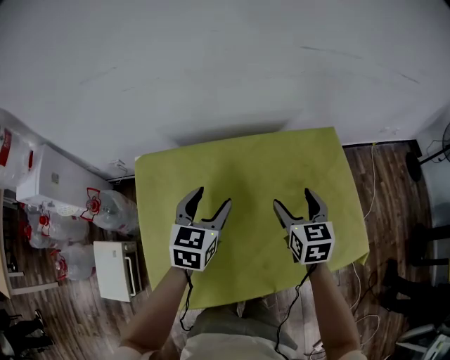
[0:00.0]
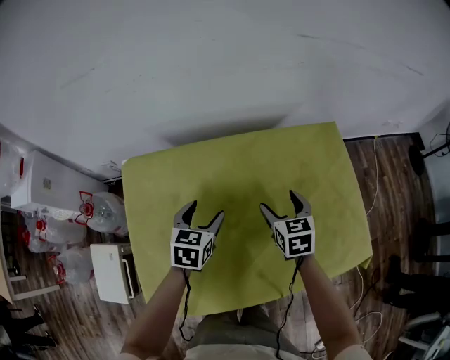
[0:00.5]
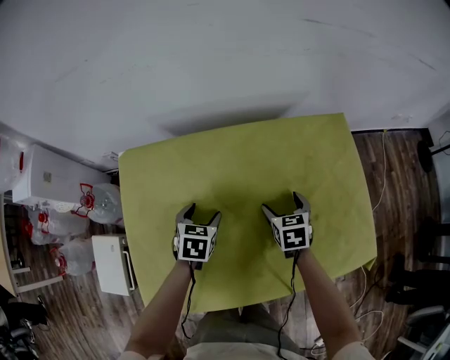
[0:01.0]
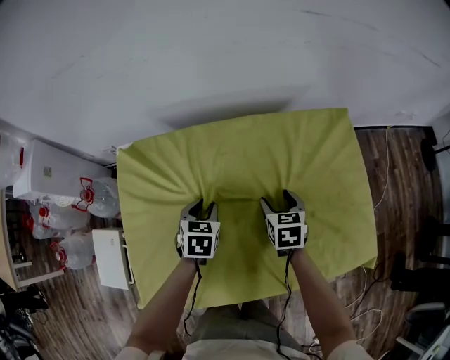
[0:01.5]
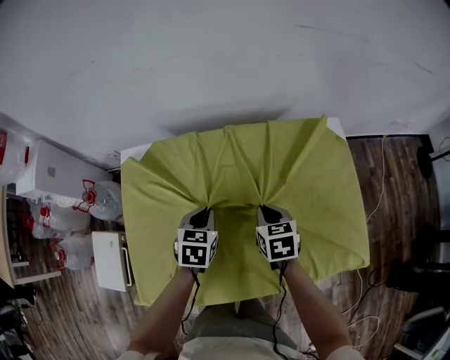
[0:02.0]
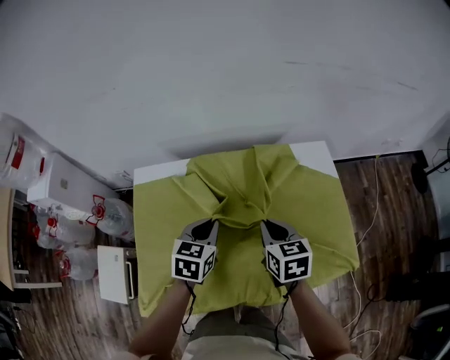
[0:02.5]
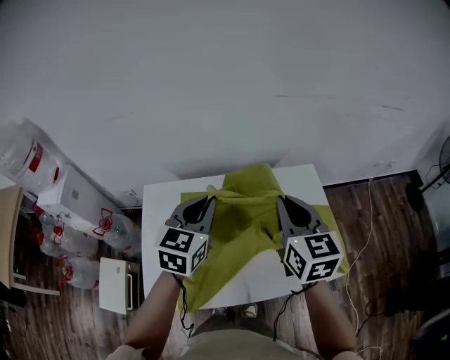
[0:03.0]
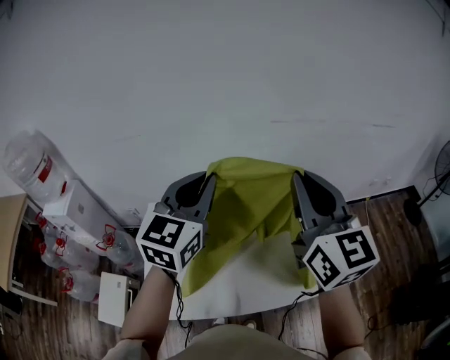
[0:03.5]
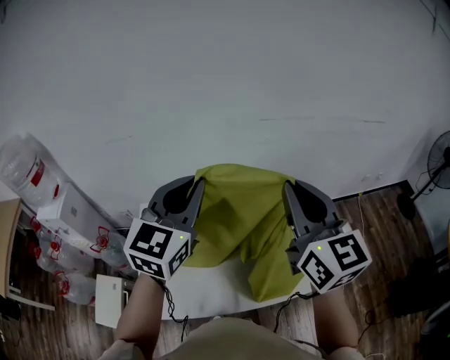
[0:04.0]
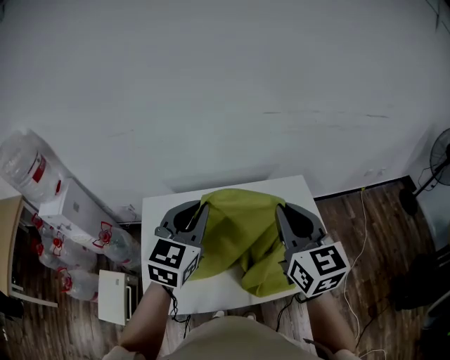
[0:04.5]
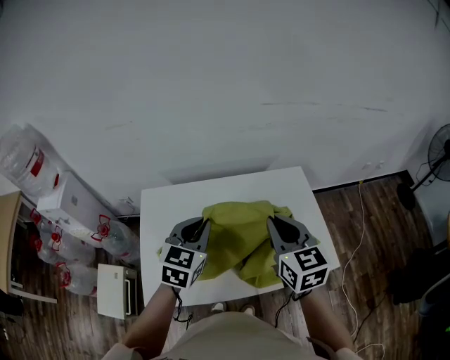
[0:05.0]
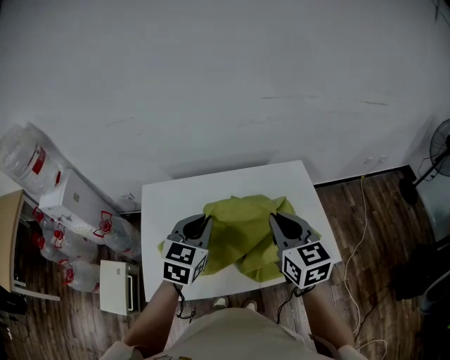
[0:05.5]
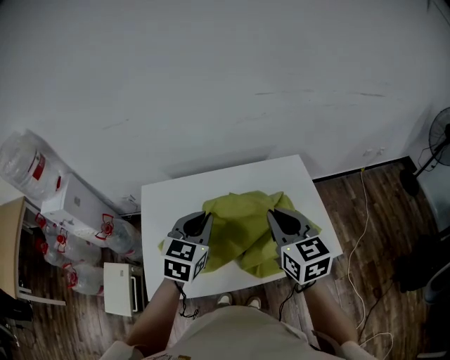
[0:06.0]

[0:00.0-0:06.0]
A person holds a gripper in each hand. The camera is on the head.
0:00.0 to 0:02.0: Both grippers travel together downward, approximately 15 cm. The right gripper closes its fingers. Meanwhile the left gripper changes its angle by approximately 20 degrees, and closes its fingers.
0:02.0 to 0:04.0: Both grippers move upward, approximately 50 cm. The left gripper points its fingers roughly 50 degrees further upward. Meanwhile the right gripper tilts its fingers about 50 degrees upward.
0:04.0 to 0:06.0: Both grippers travel together downward, roughly 20 cm. The right gripper changes its angle by approximately 20 degrees, while the left gripper turns by roughly 20 degrees.

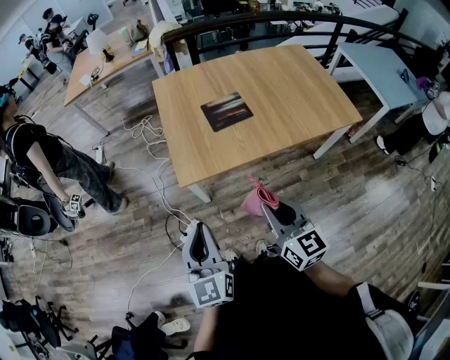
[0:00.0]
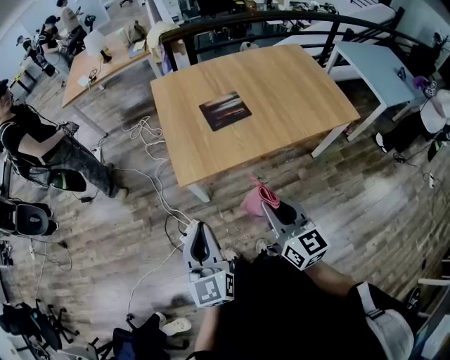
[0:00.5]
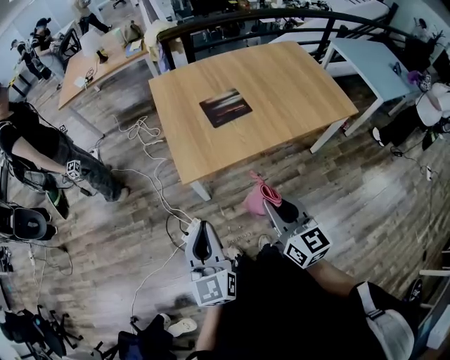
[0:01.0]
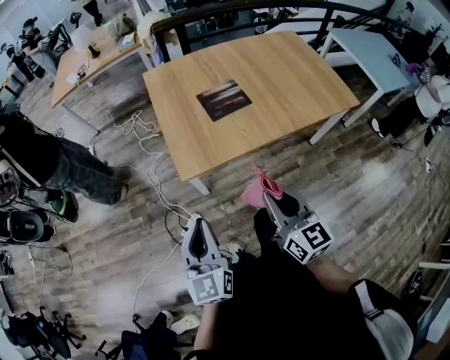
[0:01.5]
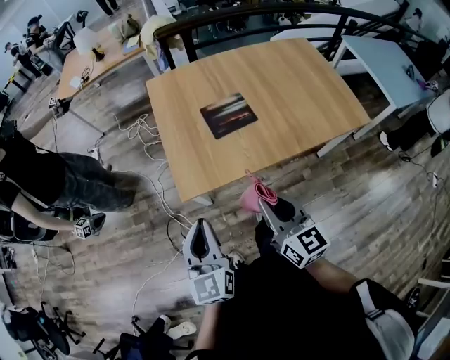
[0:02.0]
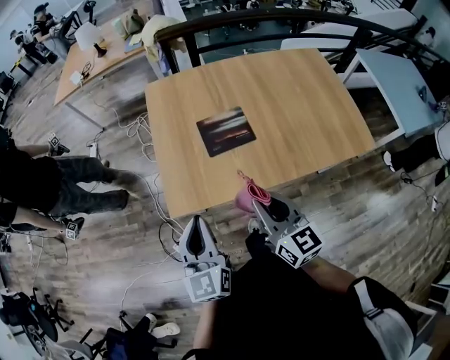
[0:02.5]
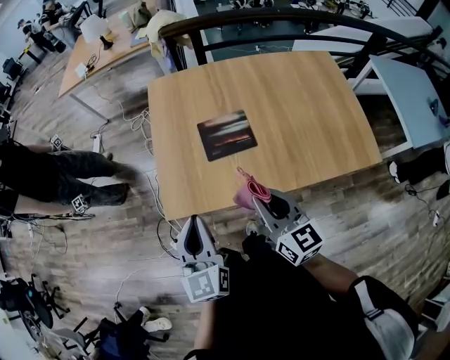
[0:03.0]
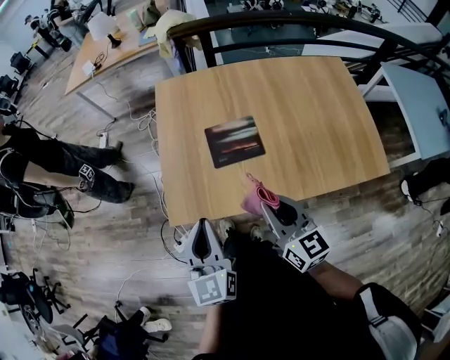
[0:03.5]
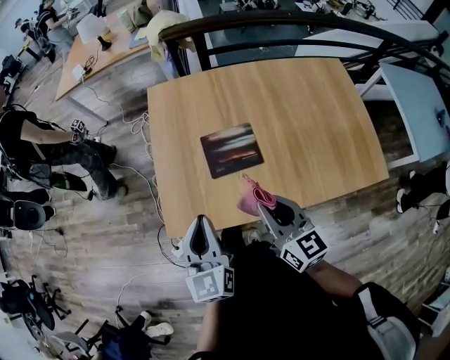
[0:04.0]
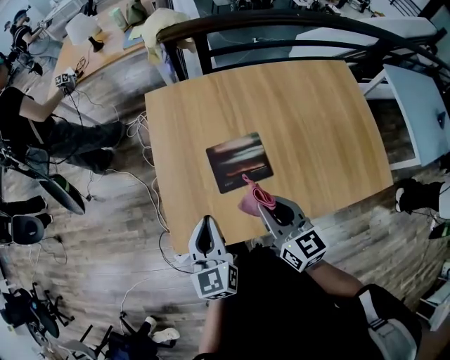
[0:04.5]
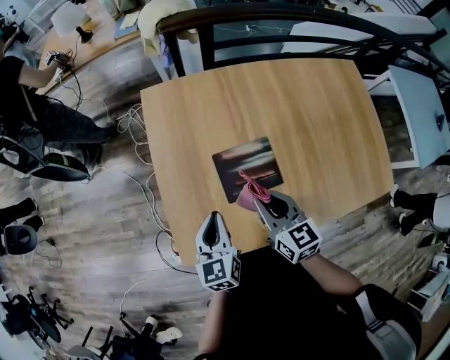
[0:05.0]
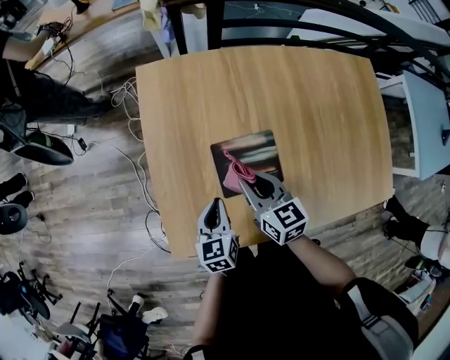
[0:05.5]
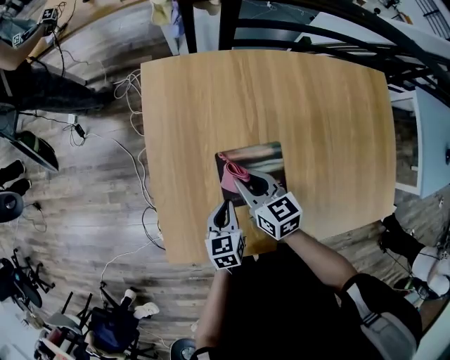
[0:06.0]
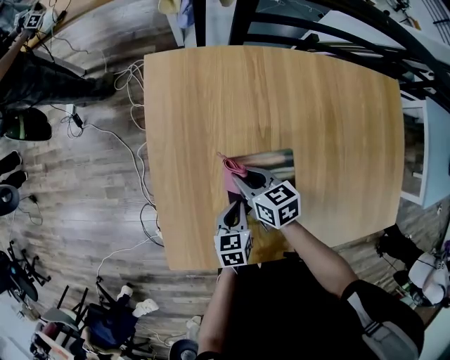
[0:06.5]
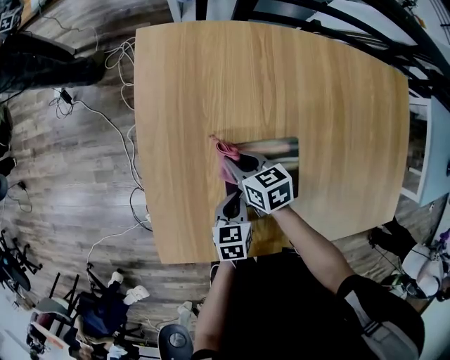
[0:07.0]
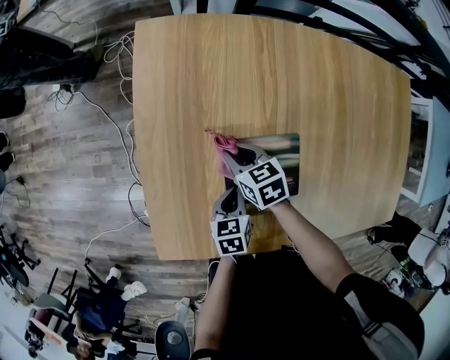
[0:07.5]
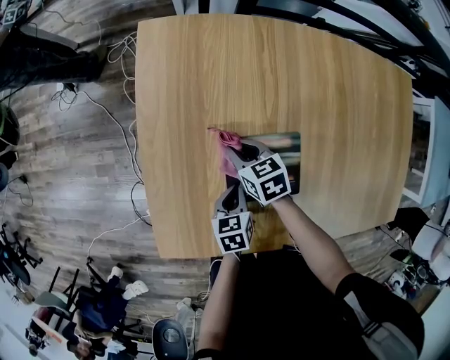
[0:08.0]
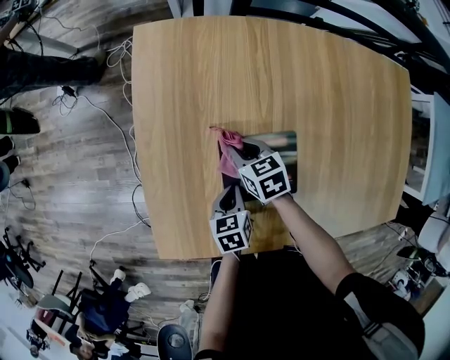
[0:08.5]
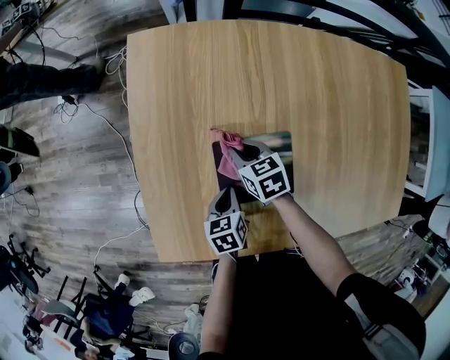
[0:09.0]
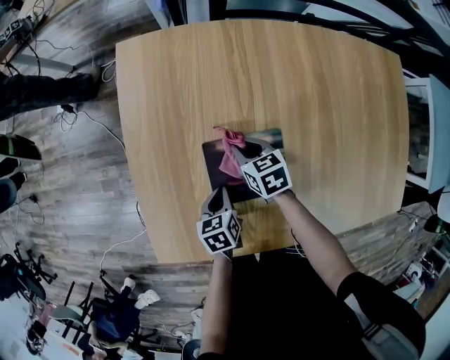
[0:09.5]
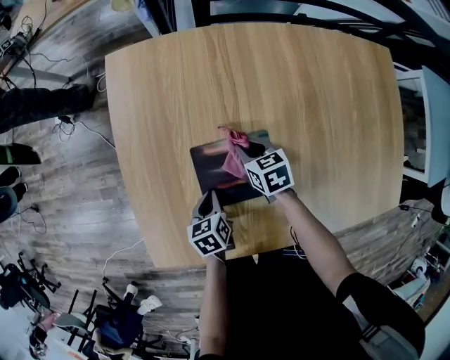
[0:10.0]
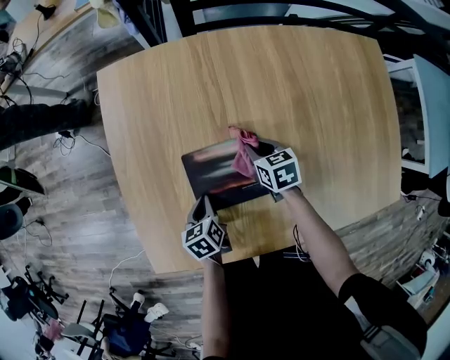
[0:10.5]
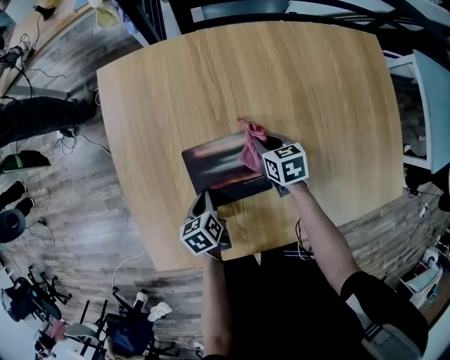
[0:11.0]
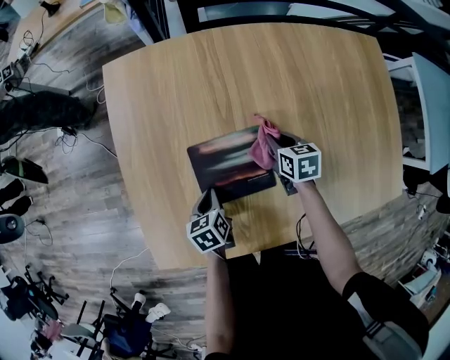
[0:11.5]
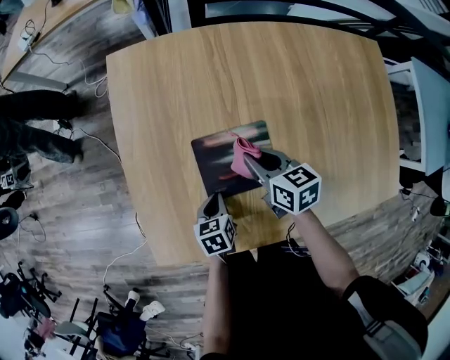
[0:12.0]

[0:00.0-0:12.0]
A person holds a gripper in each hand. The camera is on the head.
0:00.0 to 0:02.0: The grippers both shift forward by some 10 cm.
0:02.0 to 0:04.0: Both grippers travel together forward and to the right, some 25 cm.
0:04.0 to 0:06.0: The left gripper heads downward and forward, covering some 35 cm, and changes its angle by about 30 degrees; the right gripper goes approximately 35 cm forward and downward, and rotates approximately 20 degrees.
0:06.0 to 0:08.0: The right gripper goes roughly 15 cm downward, and rotates about 20 degrees, while the left gripper shifts approximately 10 cm downward.
0:08.0 to 0:10.0: The right gripper is displaced to the right by roughly 10 cm.
0:10.0 to 0:12.0: The right gripper goes some 10 cm upward, and reaches roughly 10 cm to the right, then returns.

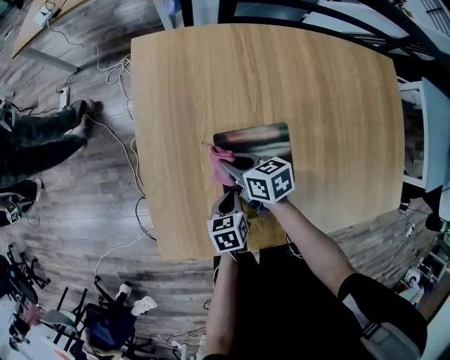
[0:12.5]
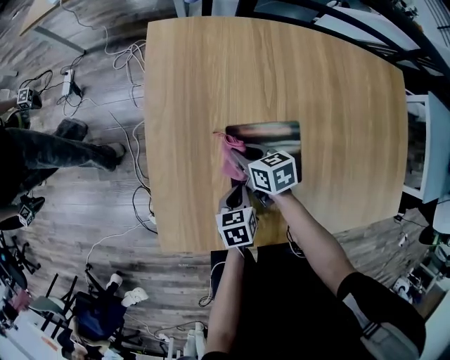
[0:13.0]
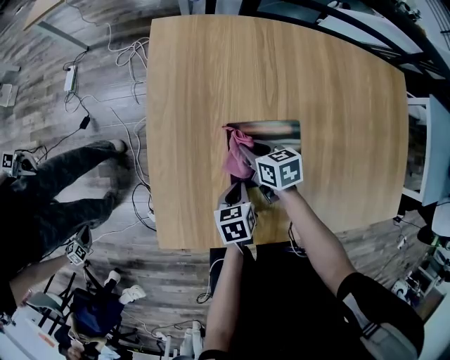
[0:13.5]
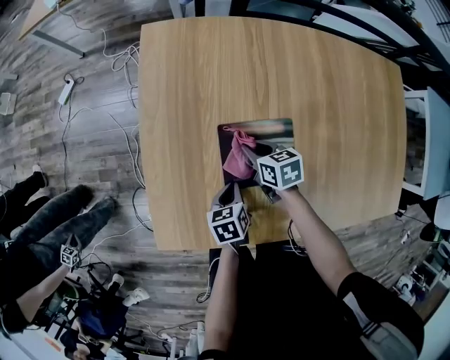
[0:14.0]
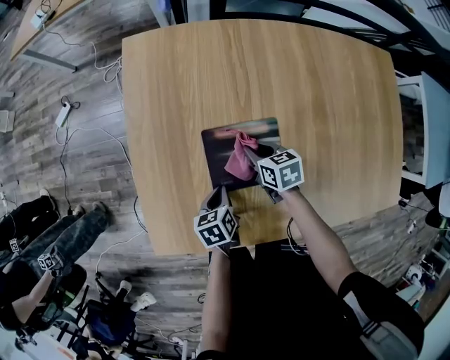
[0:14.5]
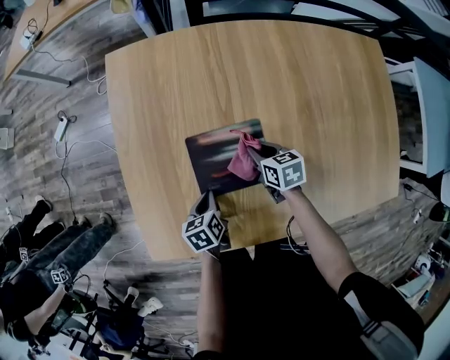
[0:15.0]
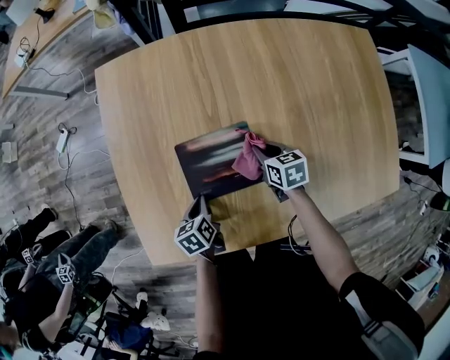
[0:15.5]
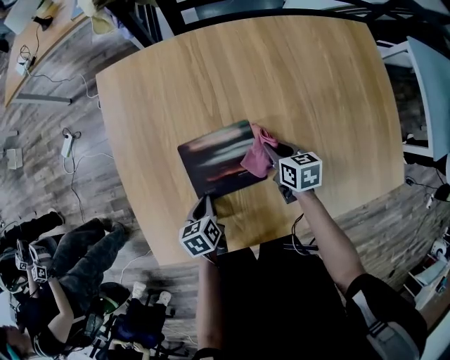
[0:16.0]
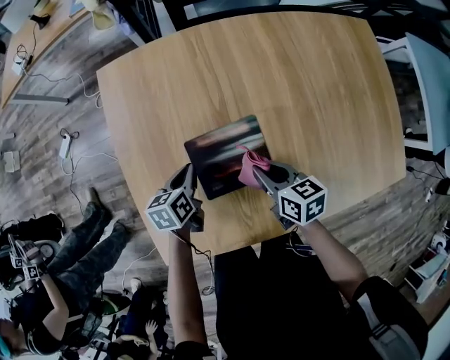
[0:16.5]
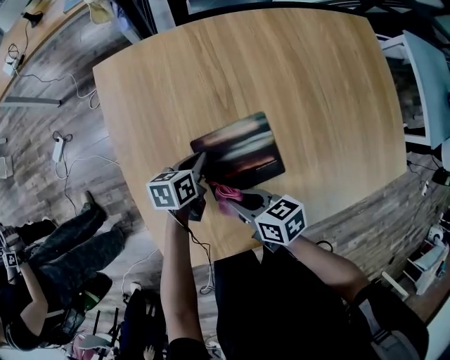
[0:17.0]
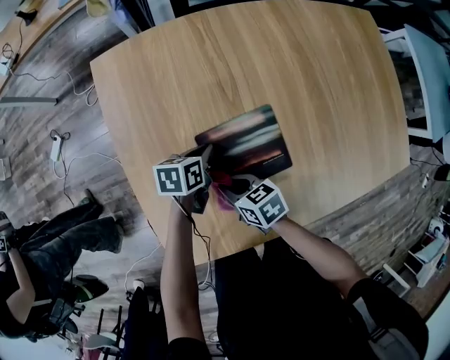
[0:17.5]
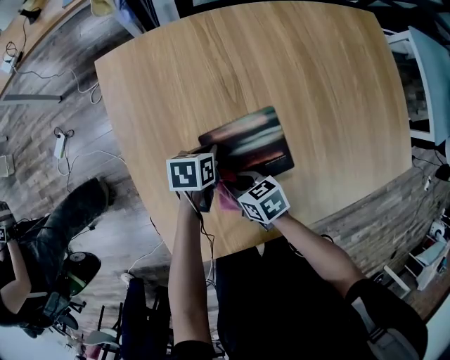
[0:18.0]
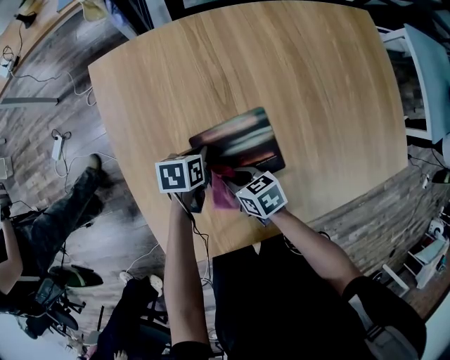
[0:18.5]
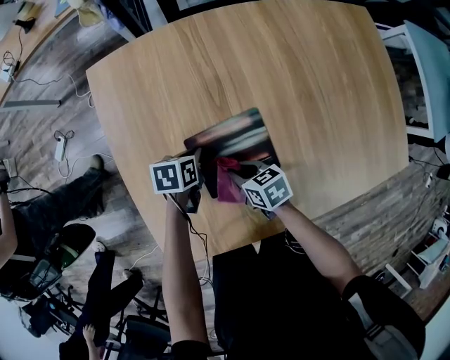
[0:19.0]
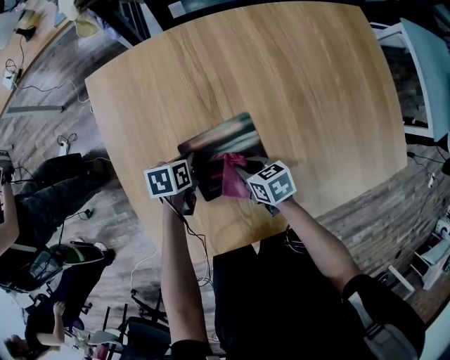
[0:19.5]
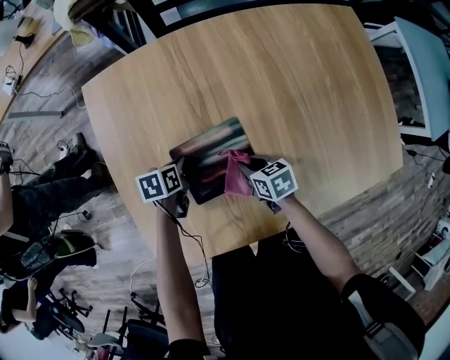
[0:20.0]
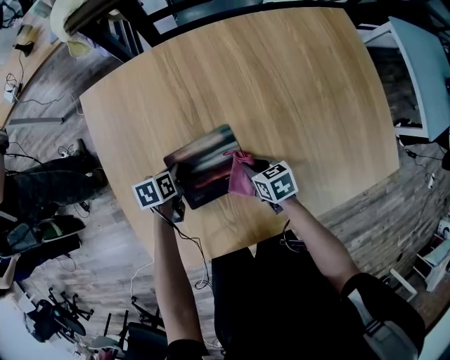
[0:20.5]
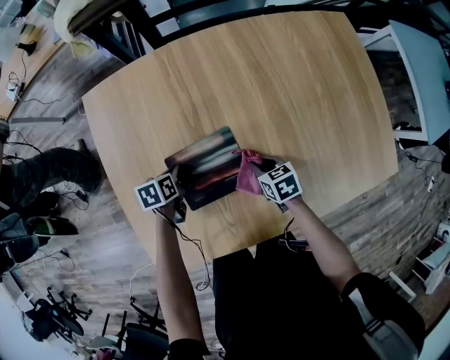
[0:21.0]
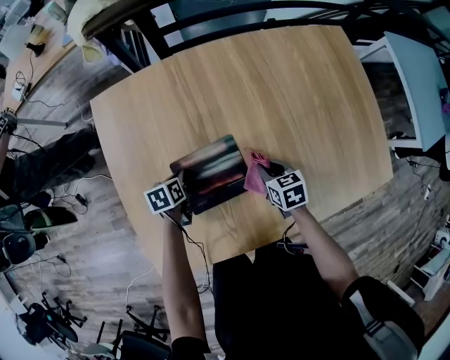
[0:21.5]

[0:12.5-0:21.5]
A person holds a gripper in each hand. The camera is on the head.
0:12.5 to 0:14.5: The right gripper is displaced to the right by roughly 10 cm.
0:14.5 to 0:17.0: The right gripper shifts approximately 15 cm backward, to the left and upward, and swivels about 20 degrees; the left gripper heads forward, covering approximately 15 cm, and changes its angle by about 30 degrees.
0:17.0 to 0:19.5: The right gripper shifts approximately 15 cm to the right, downward and forward.
0:19.5 to 0:21.5: The right gripper shifts approximately 15 cm to the right.
